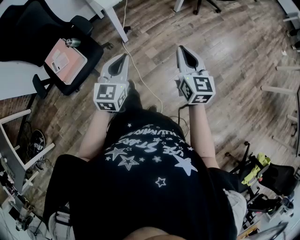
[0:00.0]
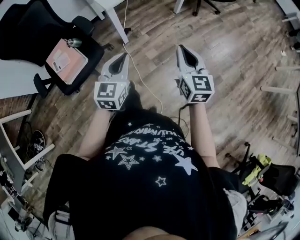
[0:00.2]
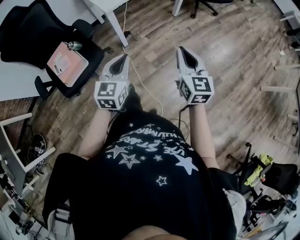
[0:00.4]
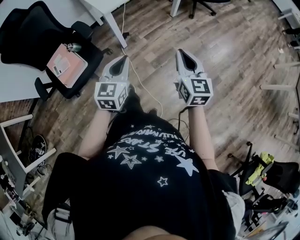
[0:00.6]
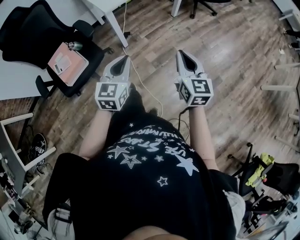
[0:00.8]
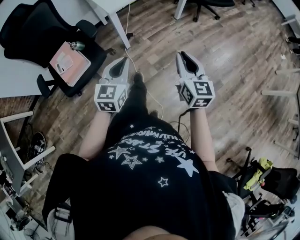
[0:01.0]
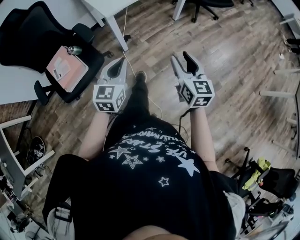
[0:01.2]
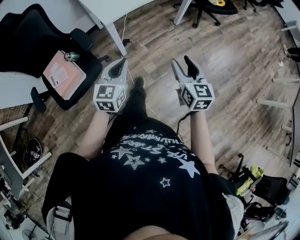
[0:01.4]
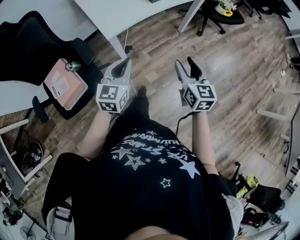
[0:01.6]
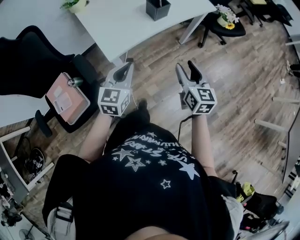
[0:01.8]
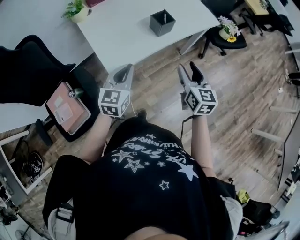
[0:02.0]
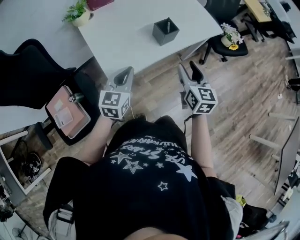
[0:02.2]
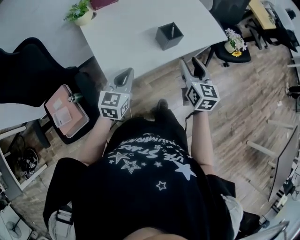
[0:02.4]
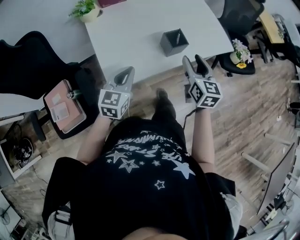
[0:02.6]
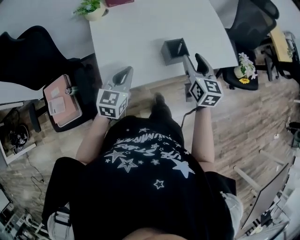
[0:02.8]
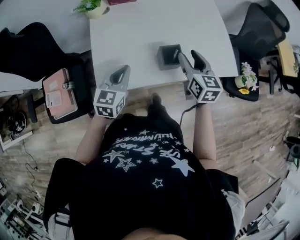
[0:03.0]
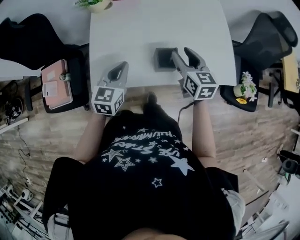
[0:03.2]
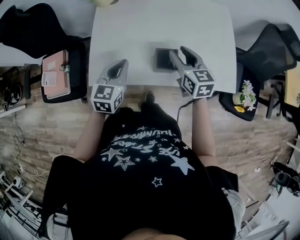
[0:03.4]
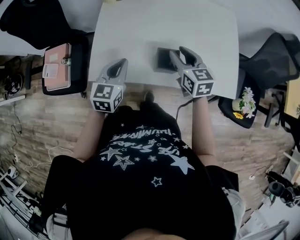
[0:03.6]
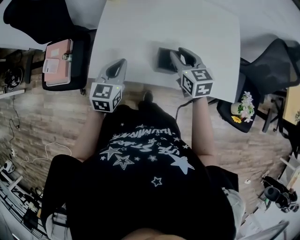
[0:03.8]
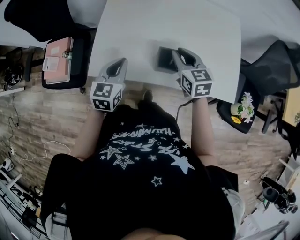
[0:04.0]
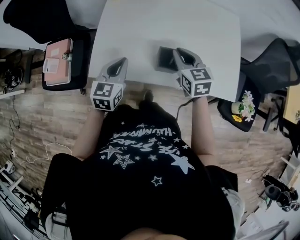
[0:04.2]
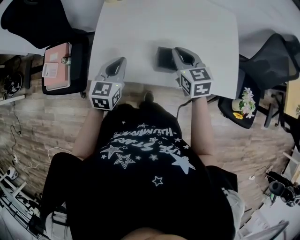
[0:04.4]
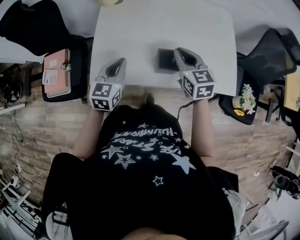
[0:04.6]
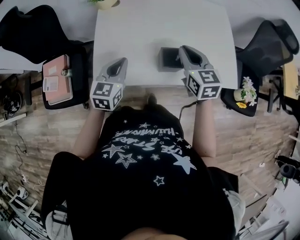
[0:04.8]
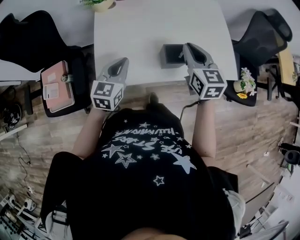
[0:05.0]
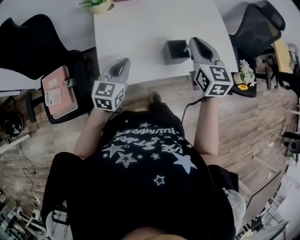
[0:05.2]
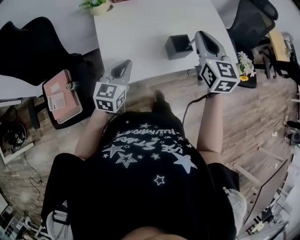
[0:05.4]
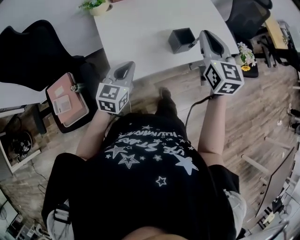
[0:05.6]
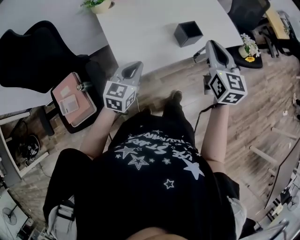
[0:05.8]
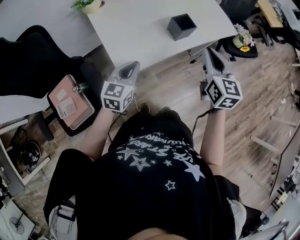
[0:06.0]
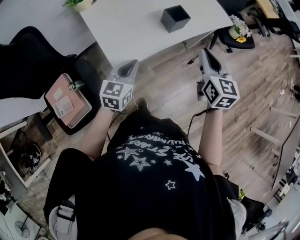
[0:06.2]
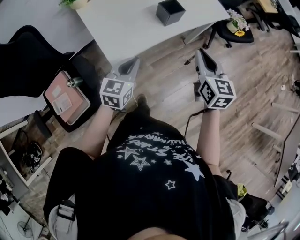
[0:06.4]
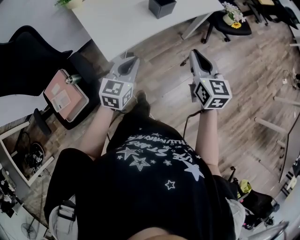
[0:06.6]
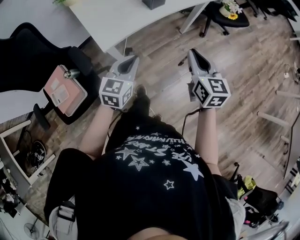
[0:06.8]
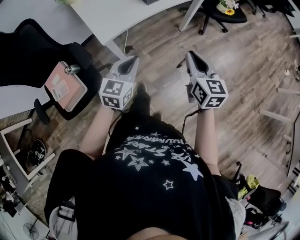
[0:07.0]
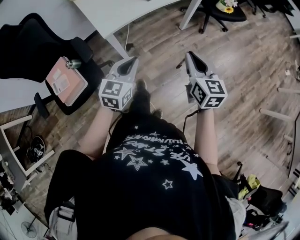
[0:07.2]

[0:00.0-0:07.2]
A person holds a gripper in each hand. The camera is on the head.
0.0 to 1.4 s: The grippers both shift forward by some 10 cm. The right gripper opens.
1.4 to 2.8 s: The pair of grippers is taken forward, about 50 cm.
2.8 to 4.4 s: The left gripper swivels about 20 degrees. The right gripper shifts by roughly 10 cm, swivels some 40 degrees, and closes its fingers.
4.4 to 5.8 s: The left gripper moves about 10 cm, and turns by about 40 degrees, while the right gripper ends up roughly 20 cm from where it was, and rotates roughly 50 degrees.
5.8 to 7.2 s: The two grippers go roughly 30 cm backward and to the right.

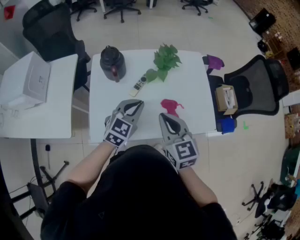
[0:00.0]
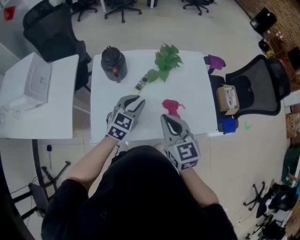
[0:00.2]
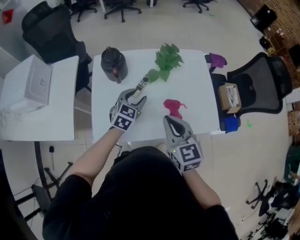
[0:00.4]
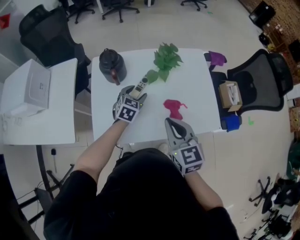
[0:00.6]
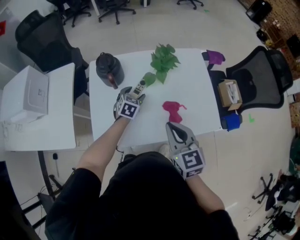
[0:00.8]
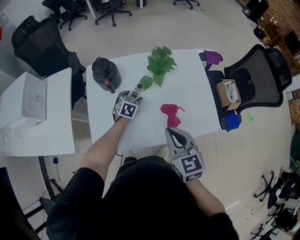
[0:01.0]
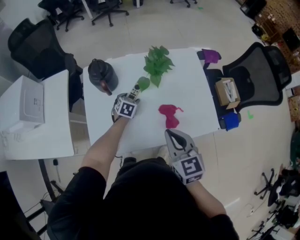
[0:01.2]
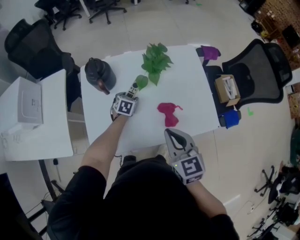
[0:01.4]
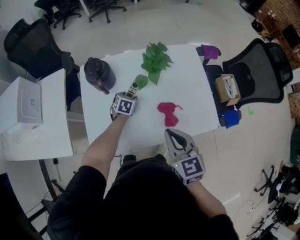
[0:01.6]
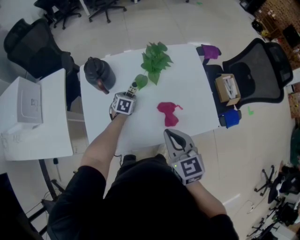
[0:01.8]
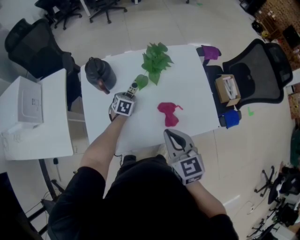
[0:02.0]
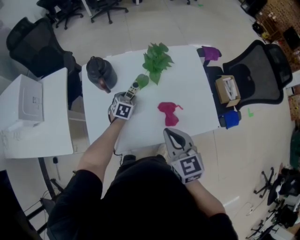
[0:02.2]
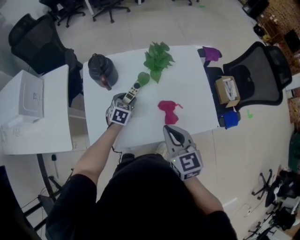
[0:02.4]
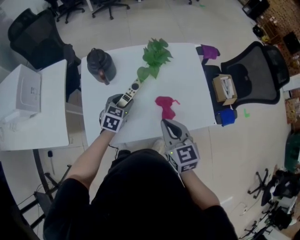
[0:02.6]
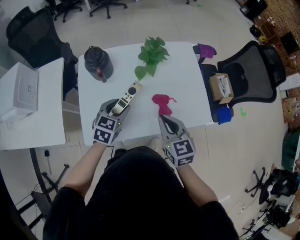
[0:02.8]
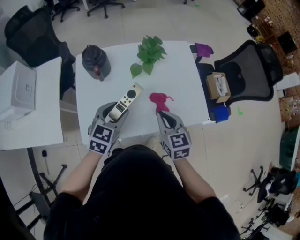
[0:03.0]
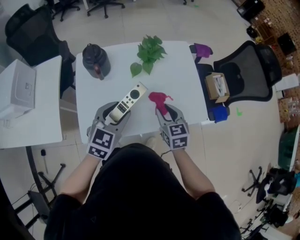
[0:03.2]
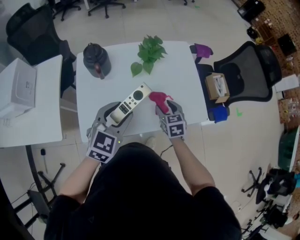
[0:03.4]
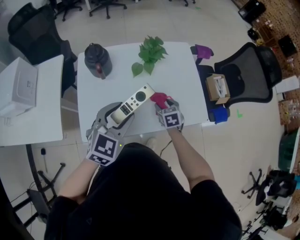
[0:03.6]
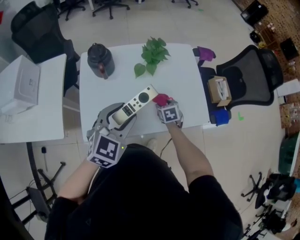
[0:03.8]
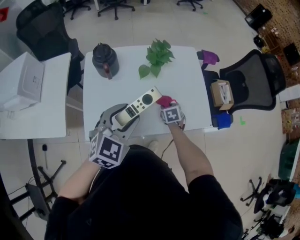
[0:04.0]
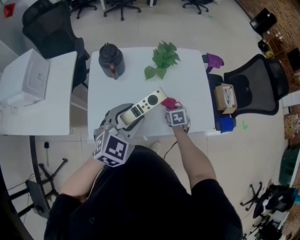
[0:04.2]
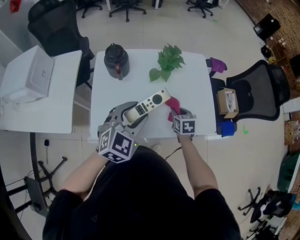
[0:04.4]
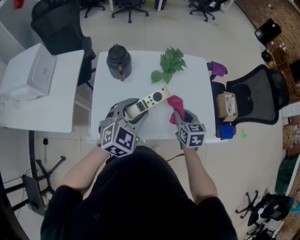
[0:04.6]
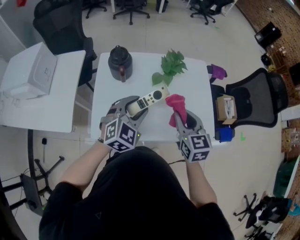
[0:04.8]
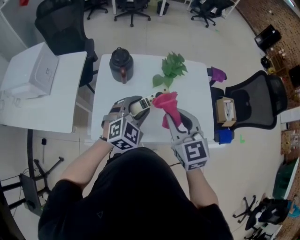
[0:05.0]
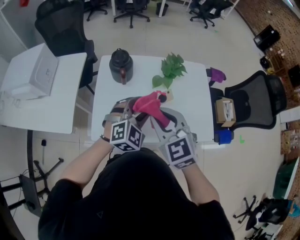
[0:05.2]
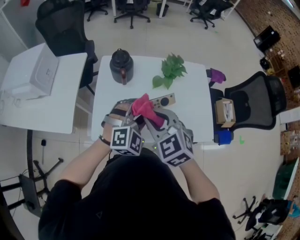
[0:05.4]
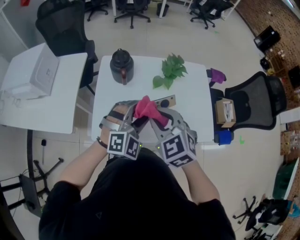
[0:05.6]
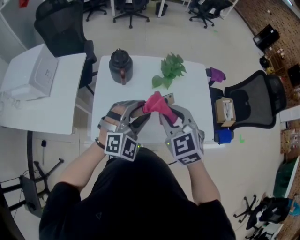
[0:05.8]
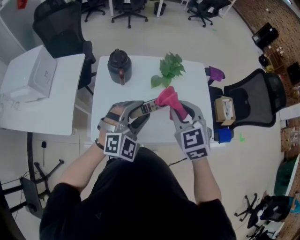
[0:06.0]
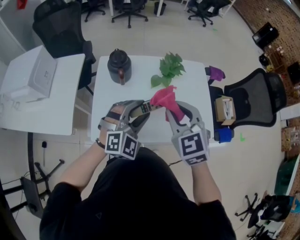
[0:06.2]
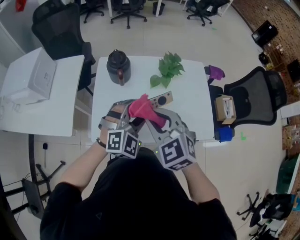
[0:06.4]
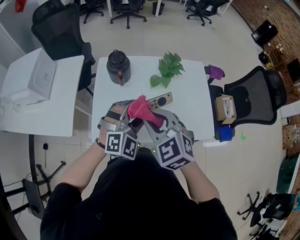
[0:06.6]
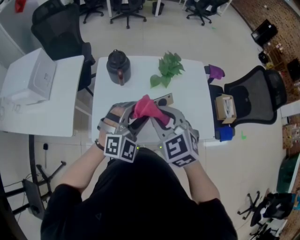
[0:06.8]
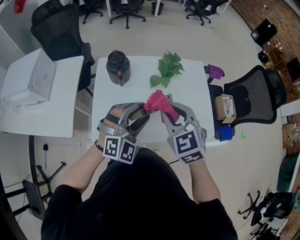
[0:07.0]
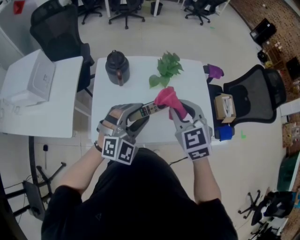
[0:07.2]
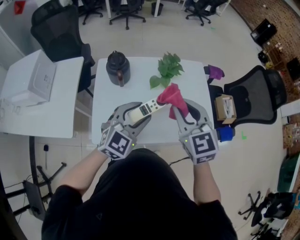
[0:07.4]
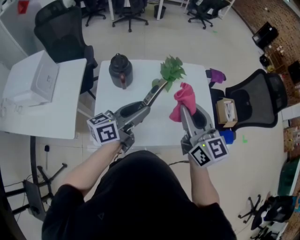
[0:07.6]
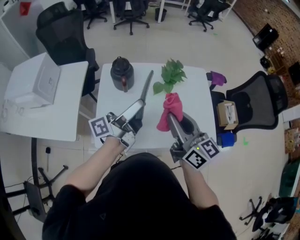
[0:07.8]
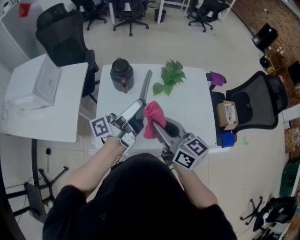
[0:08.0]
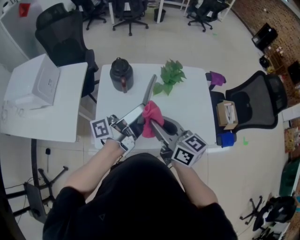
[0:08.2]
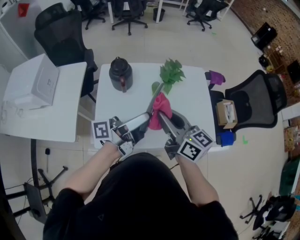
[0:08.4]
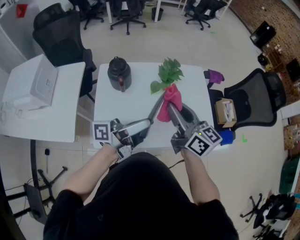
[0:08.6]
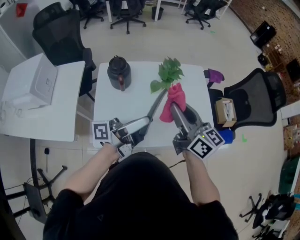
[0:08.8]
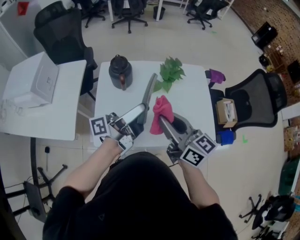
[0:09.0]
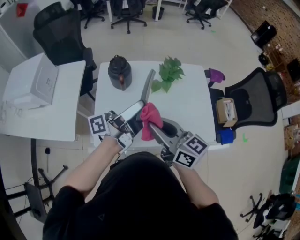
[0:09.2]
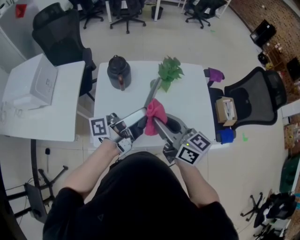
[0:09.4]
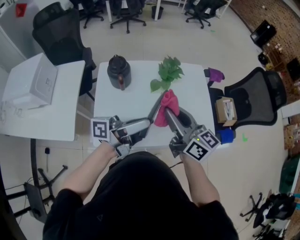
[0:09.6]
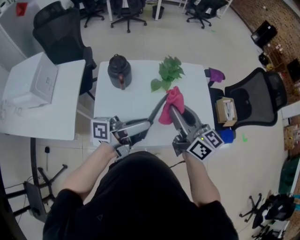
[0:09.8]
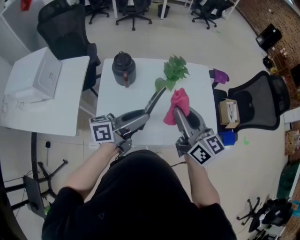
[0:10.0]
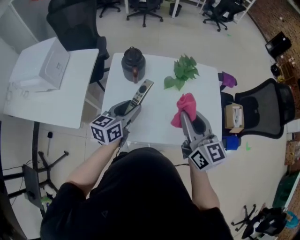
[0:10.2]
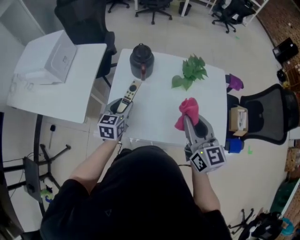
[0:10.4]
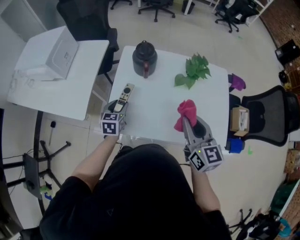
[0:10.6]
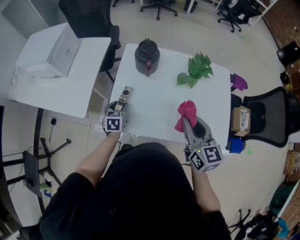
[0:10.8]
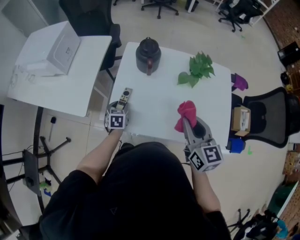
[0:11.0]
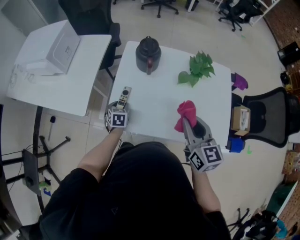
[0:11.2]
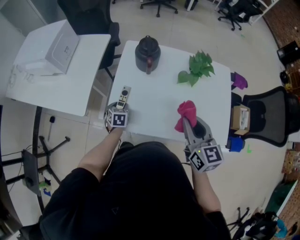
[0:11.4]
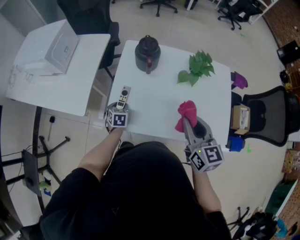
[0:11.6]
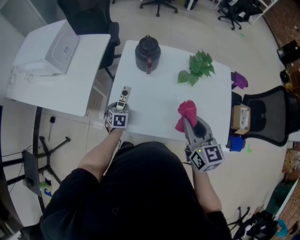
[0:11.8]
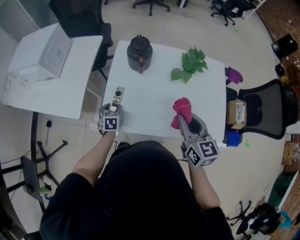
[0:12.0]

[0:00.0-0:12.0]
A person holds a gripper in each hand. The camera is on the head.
0.0 to 1.6 s: The left gripper moves downward and forward, some 30 cm, tips its fingers downward by about 30 degrees, and opens; the right gripper ends up roughly 5 cm from where it was.
1.6 to 3.0 s: The left gripper is displaced upward and backward by approximately 30 cm, and rotates some 30 degrees.
3.0 to 4.4 s: The right gripper moves downward and forward, some 15 cm, and opens, then closes once more, while the left gripper shifts approximately 5 cm upward.
4.4 to 6.0 s: The right gripper shifts some 25 cm upward, and changes its angle by roughly 40 degrees. The left gripper swivels some 30 degrees.
6.0 to 7.6 s: The left gripper rotates around the line of its fingers by roughly 80 degrees, counterclockwise from behind; the right gripper heads upward, covering approximately 5 cm, travels to the left and back again, roughly 10 cm each way, and swivels about 40 degrees.
7.6 to 9.0 s: The right gripper goes some 5 cm to the left, and rotates about 20 degrees, while the left gripper changes its angle by roughly 40 degrees.
9.0 to 10.4 s: The right gripper turns by roughly 20 degrees, while the left gripper shifts approximately 20 cm downward, and tips its fingers downward by some 50 degrees.
10.4 to 12.0 s: The right gripper shifts some 5 cm downward; the left gripper is displaced downward and to the left by approximately 20 cm, and swivels about 30 degrees.

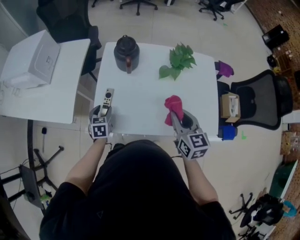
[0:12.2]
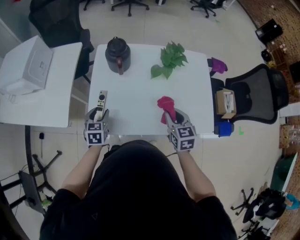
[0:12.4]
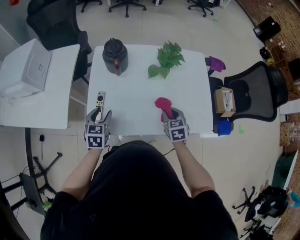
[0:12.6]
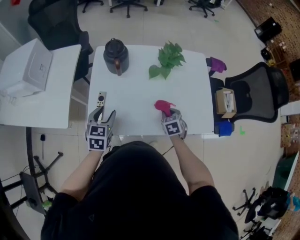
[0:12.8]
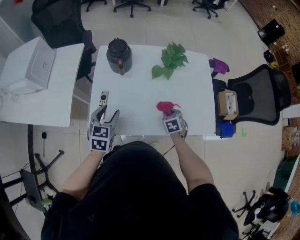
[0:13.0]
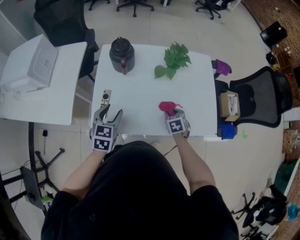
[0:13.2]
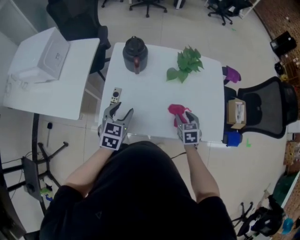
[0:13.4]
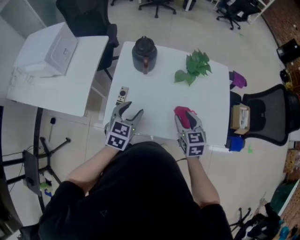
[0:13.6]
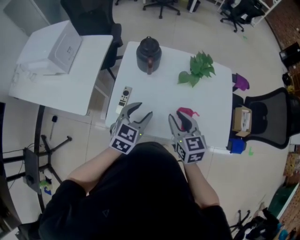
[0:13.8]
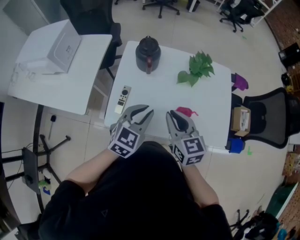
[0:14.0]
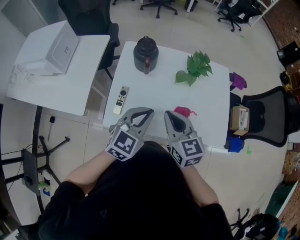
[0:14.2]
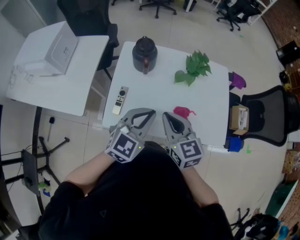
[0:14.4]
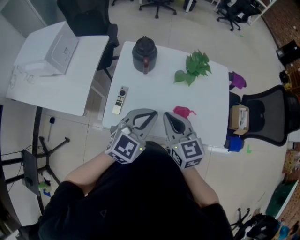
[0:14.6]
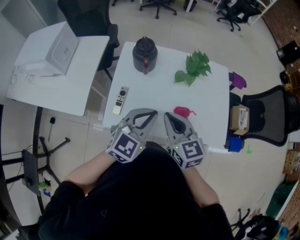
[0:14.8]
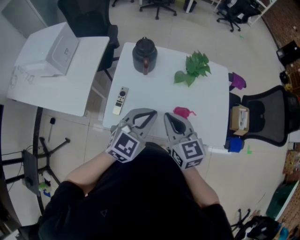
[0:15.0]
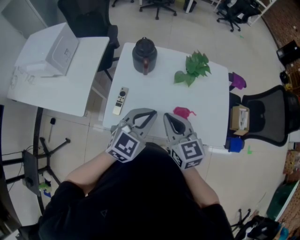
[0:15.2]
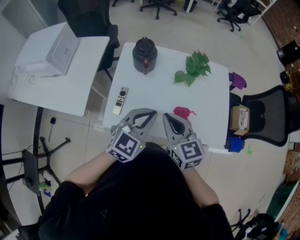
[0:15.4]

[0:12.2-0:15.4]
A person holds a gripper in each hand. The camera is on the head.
12.2 to 13.8 s: The left gripper moves upward and to the right, approximately 20 cm, and rotates approximately 30 degrees; the right gripper is displaced to the left by about 5 cm, and moves some 20 cm downward and comes back.
13.8 to 15.4 s: The right gripper moves some 5 cm, and closes. Meanwhile the left gripper goes some 5 cm upward, and closes its fingers.

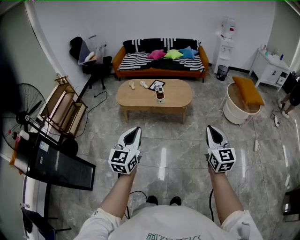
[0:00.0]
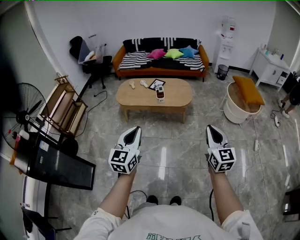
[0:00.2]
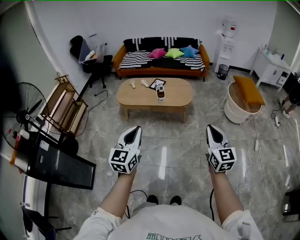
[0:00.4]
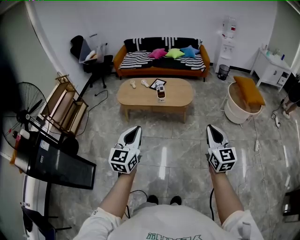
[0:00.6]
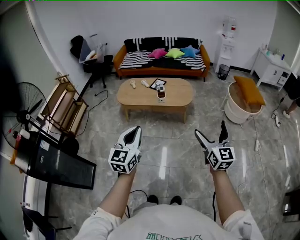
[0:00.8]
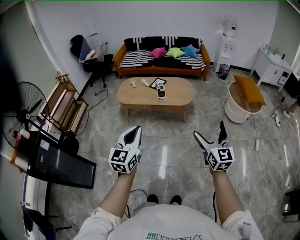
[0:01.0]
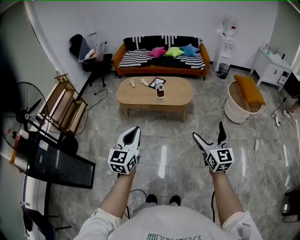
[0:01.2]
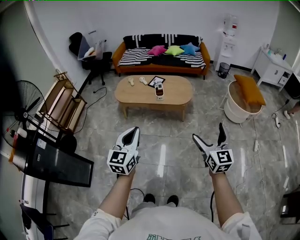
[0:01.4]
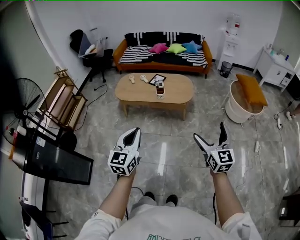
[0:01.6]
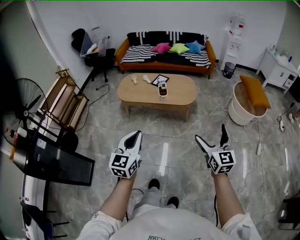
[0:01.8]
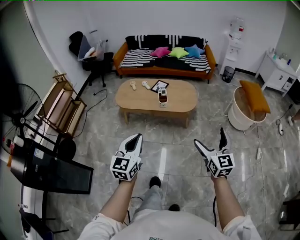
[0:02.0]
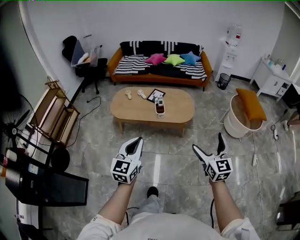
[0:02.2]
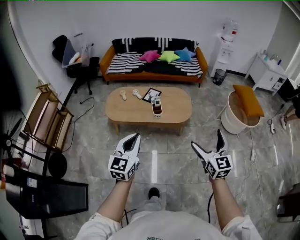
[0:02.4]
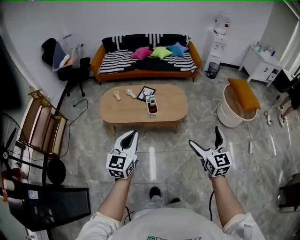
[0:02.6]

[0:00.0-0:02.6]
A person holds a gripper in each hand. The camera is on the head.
0.0 to 1.2 s: The right gripper opens.
1.2 to 2.6 s: Both grippers travel together forward, approximately 25 cm.
